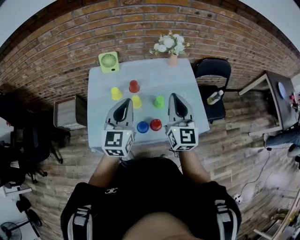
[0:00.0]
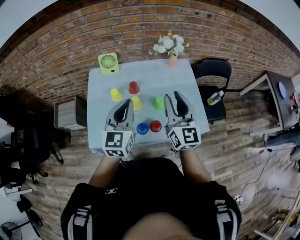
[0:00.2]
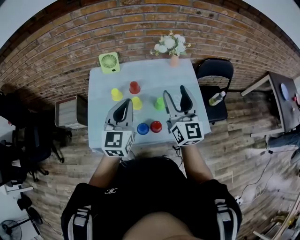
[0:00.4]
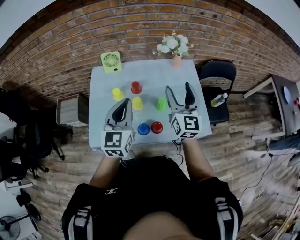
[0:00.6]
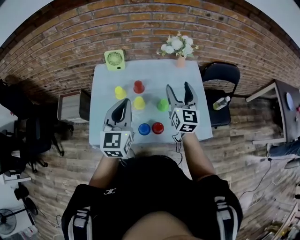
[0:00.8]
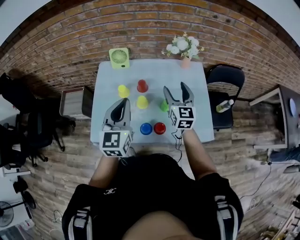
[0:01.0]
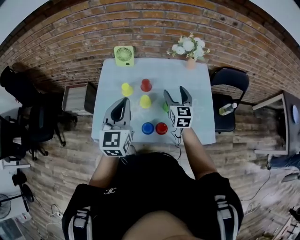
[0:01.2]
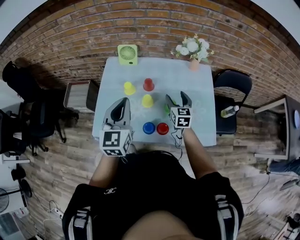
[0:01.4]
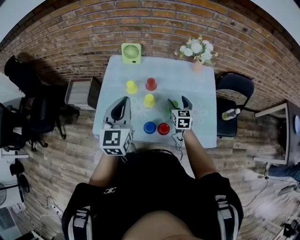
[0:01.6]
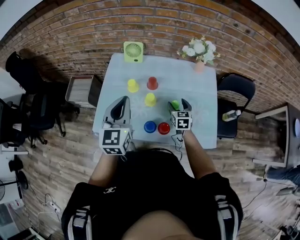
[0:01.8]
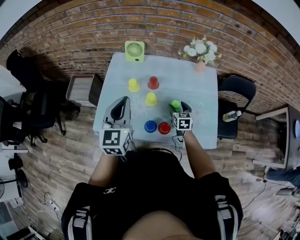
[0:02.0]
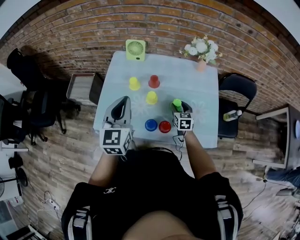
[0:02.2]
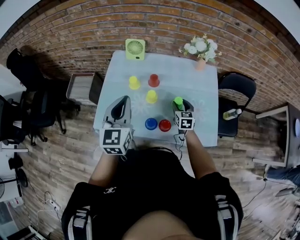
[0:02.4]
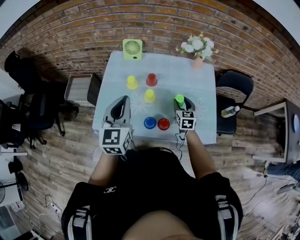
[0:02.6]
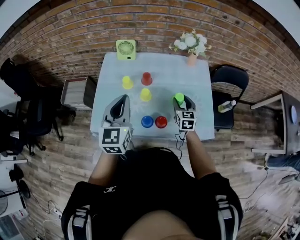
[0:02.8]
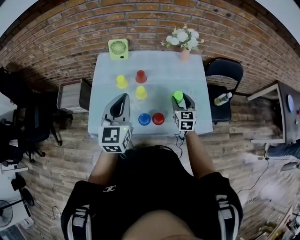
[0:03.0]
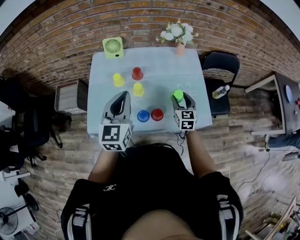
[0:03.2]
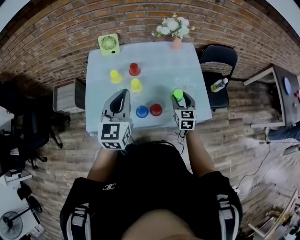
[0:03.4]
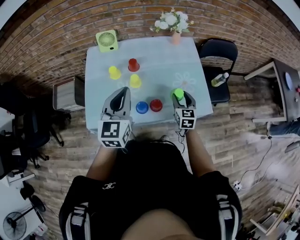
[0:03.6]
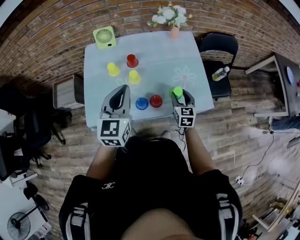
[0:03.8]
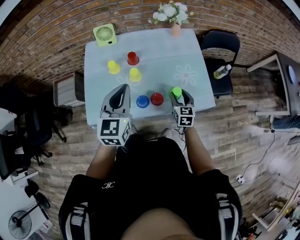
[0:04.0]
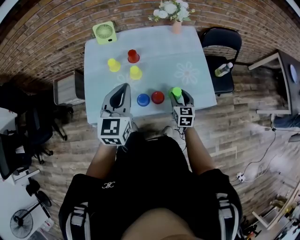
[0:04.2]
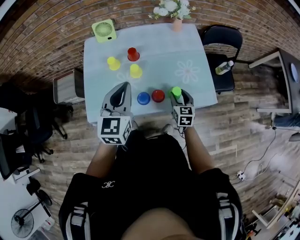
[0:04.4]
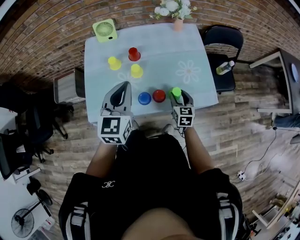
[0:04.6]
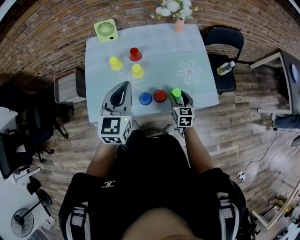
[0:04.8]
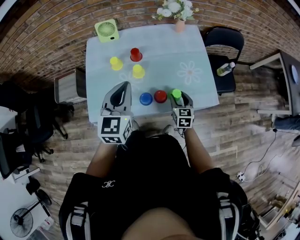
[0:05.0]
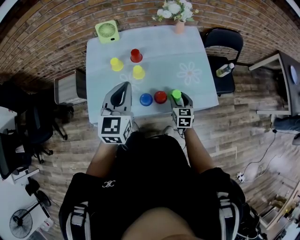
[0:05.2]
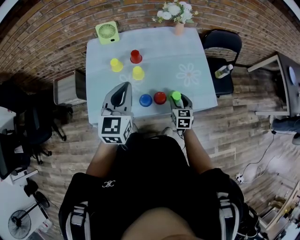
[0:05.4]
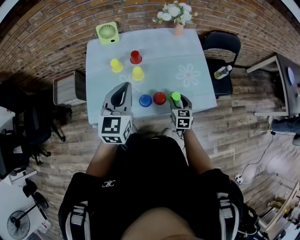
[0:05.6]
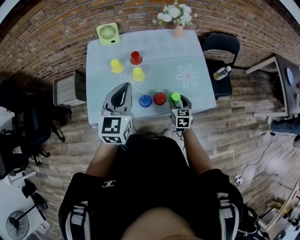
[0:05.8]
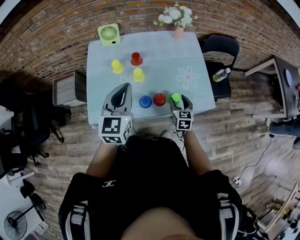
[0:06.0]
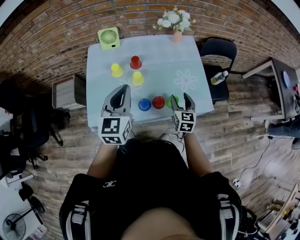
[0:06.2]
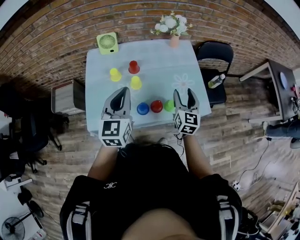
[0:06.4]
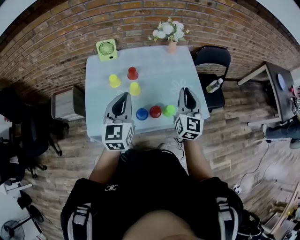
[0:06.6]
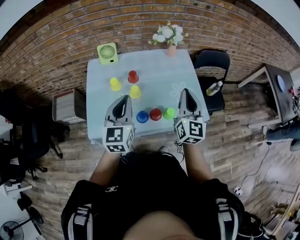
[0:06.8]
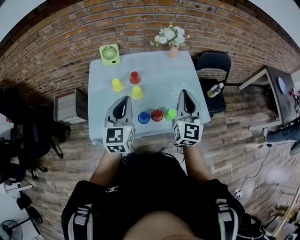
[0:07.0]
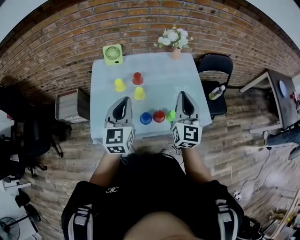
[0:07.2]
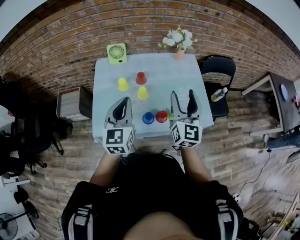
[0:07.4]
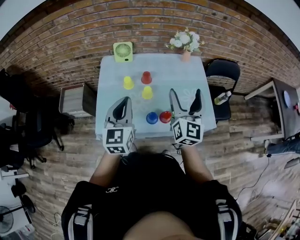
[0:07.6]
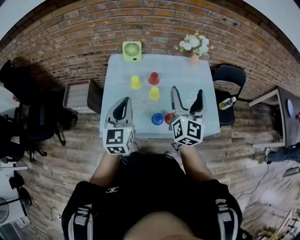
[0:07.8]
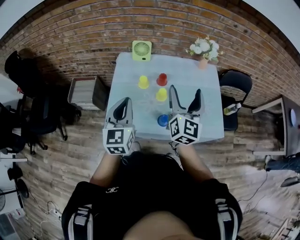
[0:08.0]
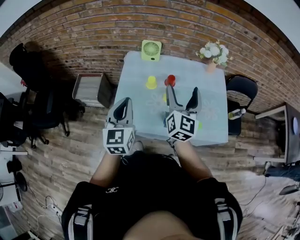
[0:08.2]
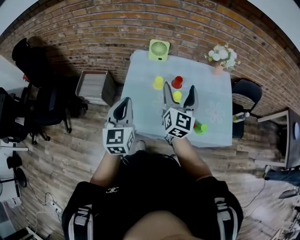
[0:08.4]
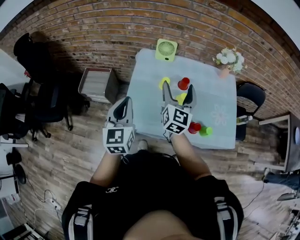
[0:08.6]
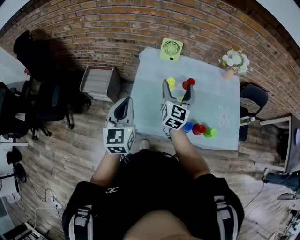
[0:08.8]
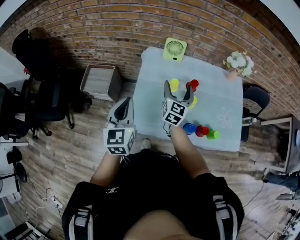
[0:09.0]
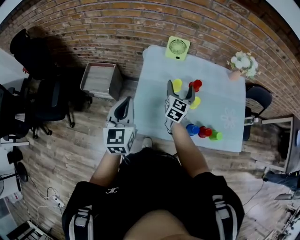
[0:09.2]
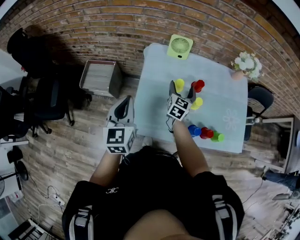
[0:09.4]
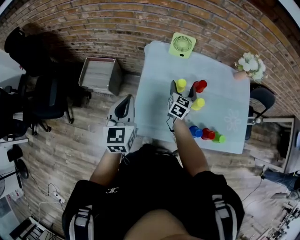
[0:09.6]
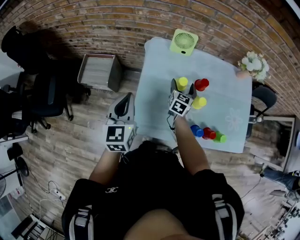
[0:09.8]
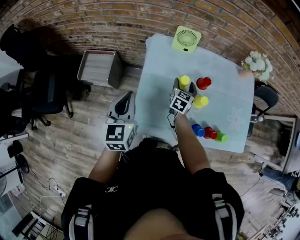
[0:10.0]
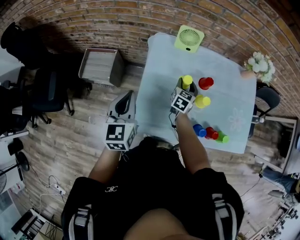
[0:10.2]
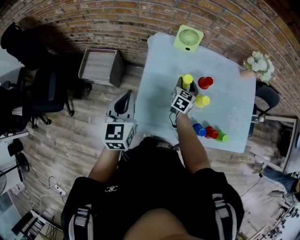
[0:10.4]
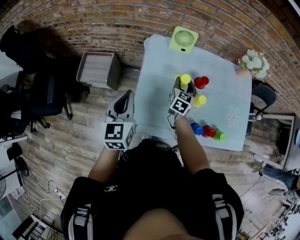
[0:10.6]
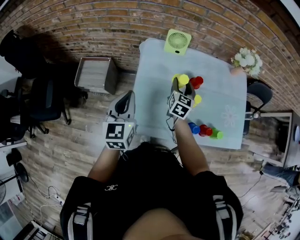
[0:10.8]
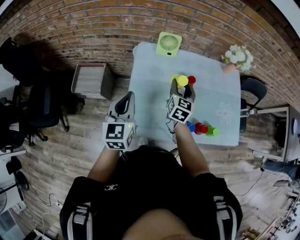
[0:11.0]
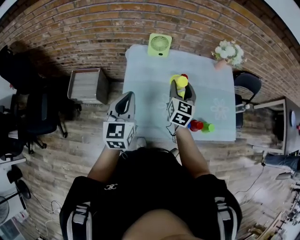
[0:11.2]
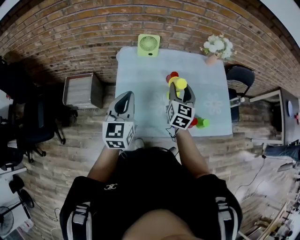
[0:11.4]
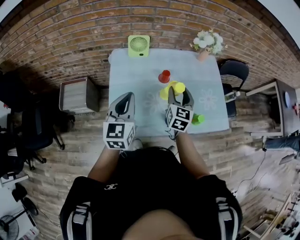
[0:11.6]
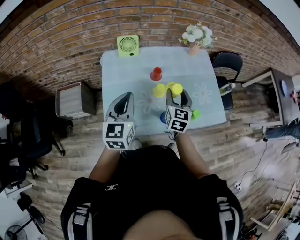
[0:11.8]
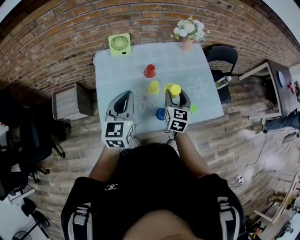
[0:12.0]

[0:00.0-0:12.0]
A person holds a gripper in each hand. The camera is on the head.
0:00.0 to 0:01.6: The right gripper moves downward and forward, about 30 cm, angles its fingers downward, by some 30 degrees, and opens its fingers, while the left gripper changes place by approximately 5 cm.
0:01.6 to 0:03.0: The right gripper moves backward, about 5 cm.
0:03.0 to 0:04.4: The right gripper is displaced backward and downward by approximately 10 cm. Meanwhile the left gripper changes place by approximately 5 cm.
0:04.4 to 0:06.0: The grippers make only small movements.
0:06.0 to 0:07.6: The left gripper changes place by about 5 cm. The right gripper goes about 30 cm upward, tilts its fingers roughly 40 degrees upward, and opens up.
0:07.6 to 0:09.0: The left gripper goes approximately 25 cm to the left, while the right gripper is displaced to the left, forward and downward by some 35 cm.
0:09.0 to 0:10.4: The left gripper goes about 10 cm forward, downward and to the left, while the right gripper travels downward and forward by some 20 cm, turns by approximately 20 degrees, and closes up.
0:10.4 to 0:12.0: The right gripper travels to the right, backward and upward by approximately 30 cm. Meanwhile the left gripper heads to the right, covering roughly 20 cm, and changes its angle by roughly 20 degrees.

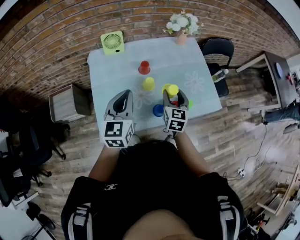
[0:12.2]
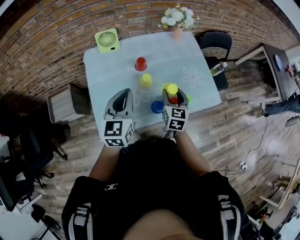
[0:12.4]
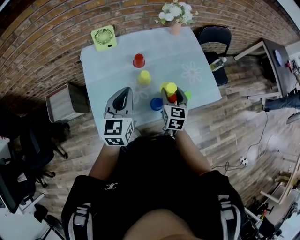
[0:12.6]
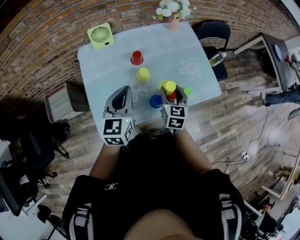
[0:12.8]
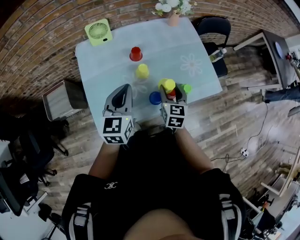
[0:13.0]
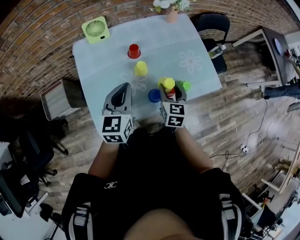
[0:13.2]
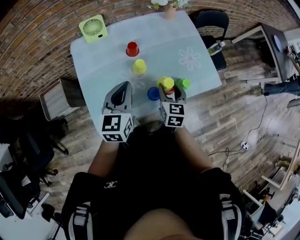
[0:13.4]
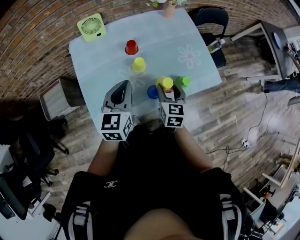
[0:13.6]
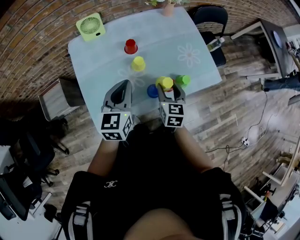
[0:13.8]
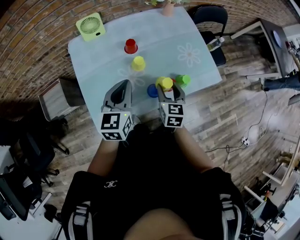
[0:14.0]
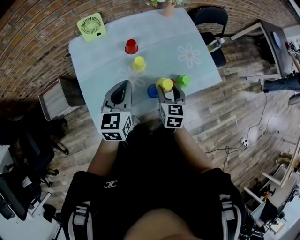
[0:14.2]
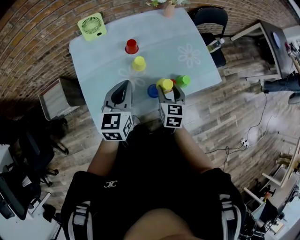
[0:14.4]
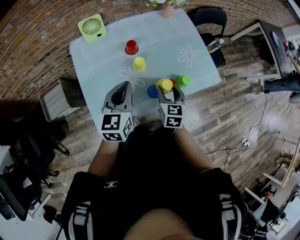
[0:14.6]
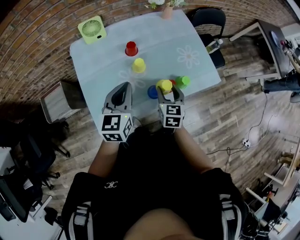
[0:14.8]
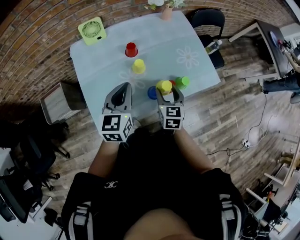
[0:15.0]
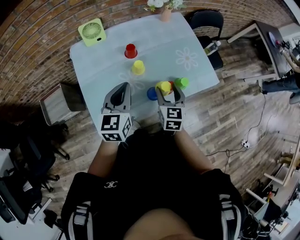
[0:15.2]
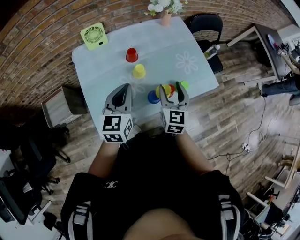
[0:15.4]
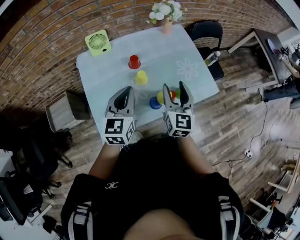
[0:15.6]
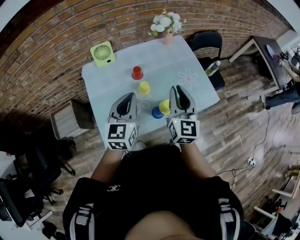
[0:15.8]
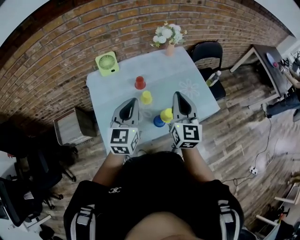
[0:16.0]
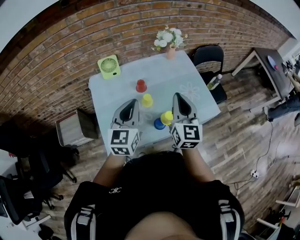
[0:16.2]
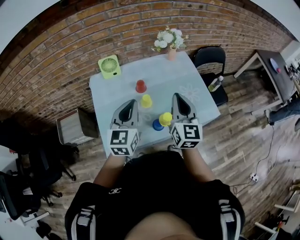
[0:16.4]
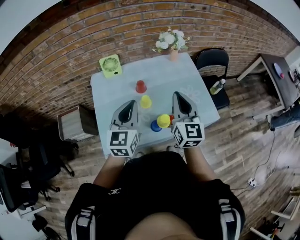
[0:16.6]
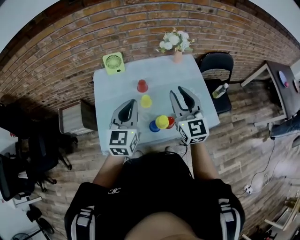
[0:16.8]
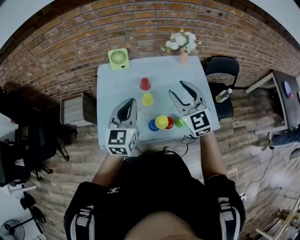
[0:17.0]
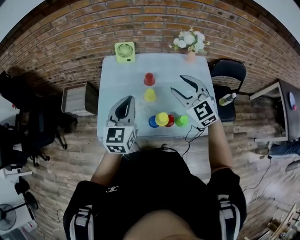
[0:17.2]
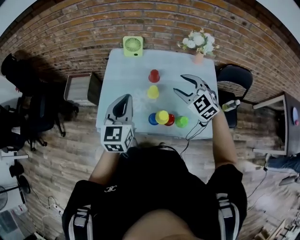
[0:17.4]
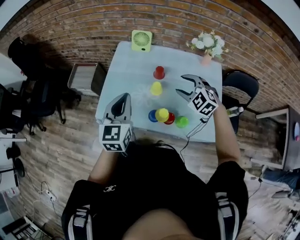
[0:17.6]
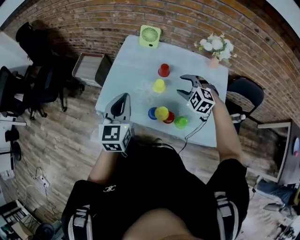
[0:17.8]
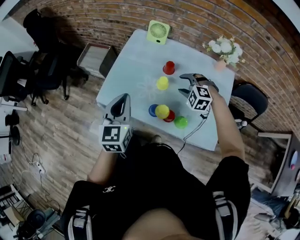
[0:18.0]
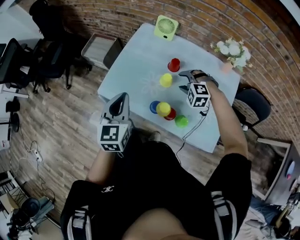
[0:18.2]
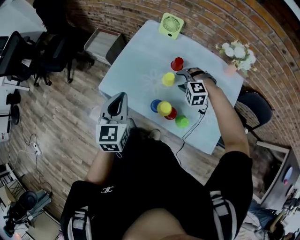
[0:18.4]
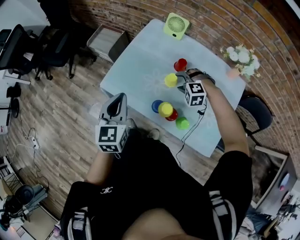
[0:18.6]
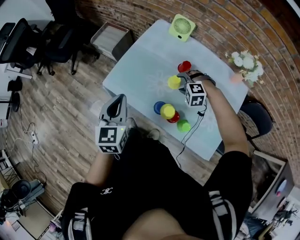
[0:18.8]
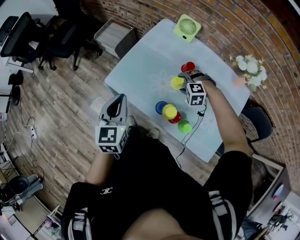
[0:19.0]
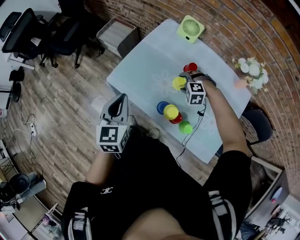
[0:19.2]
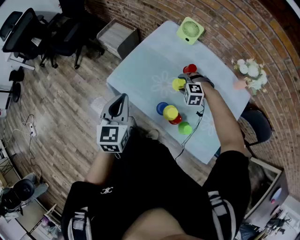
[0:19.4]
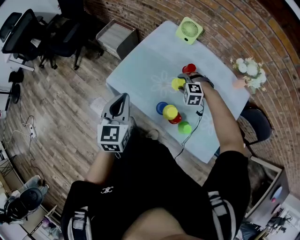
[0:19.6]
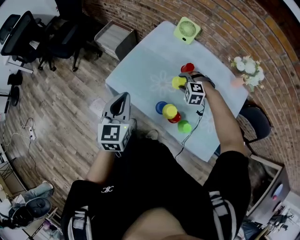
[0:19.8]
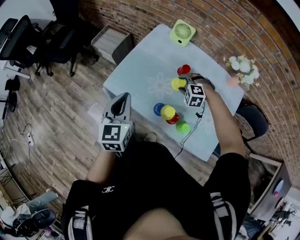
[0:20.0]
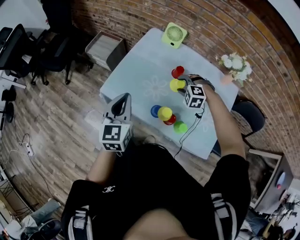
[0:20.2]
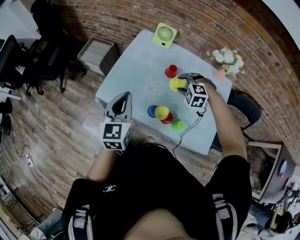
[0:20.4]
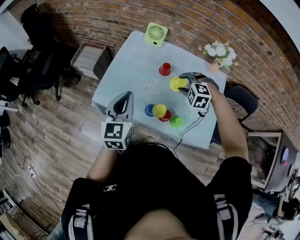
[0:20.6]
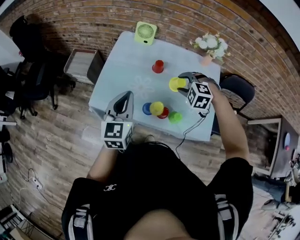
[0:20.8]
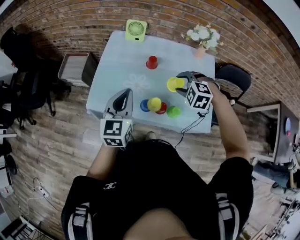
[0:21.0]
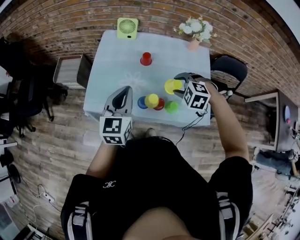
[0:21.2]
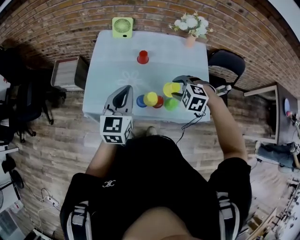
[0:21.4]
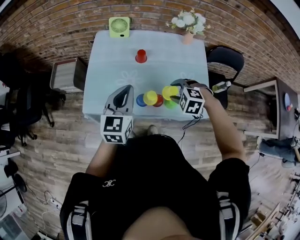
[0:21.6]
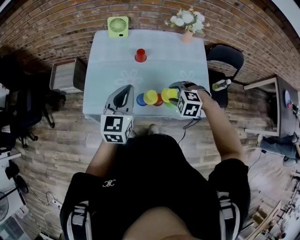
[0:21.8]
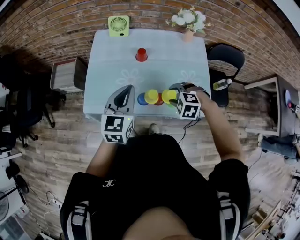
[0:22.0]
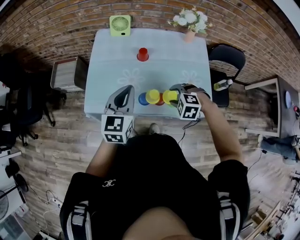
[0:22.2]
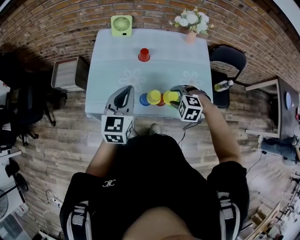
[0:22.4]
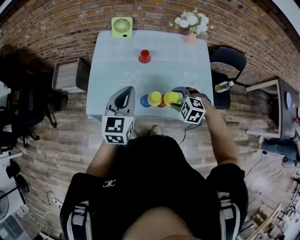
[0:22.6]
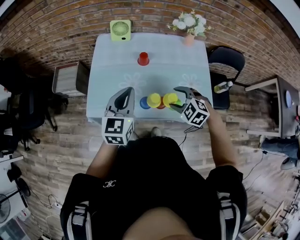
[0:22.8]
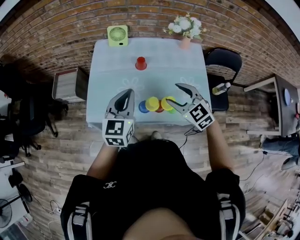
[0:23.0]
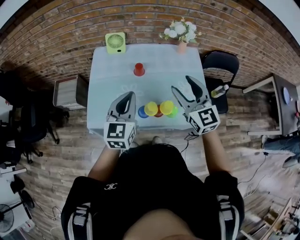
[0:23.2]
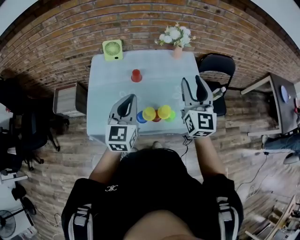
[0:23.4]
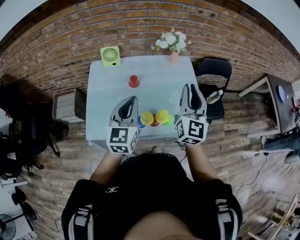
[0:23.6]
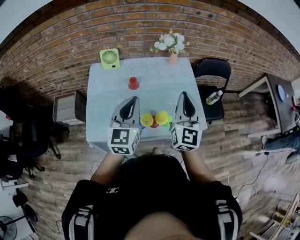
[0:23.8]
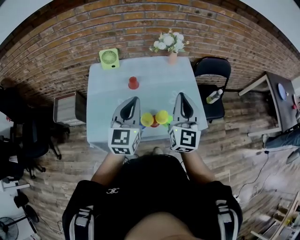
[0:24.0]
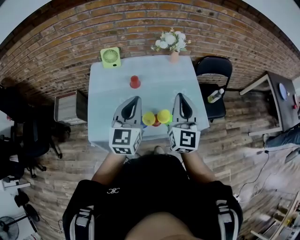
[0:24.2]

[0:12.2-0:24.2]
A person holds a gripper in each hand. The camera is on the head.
0:12.2 to 0:13.8: Both grippers travel together downward, some 5 cm.
0:13.8 to 0:15.2: The grippers move only a little.
0:15.2 to 0:16.6: The left gripper heads upward, covering some 10 cm; the right gripper goes approximately 20 cm upward, rotates approximately 30 degrees, and closes.
0:16.6 to 0:18.2: The right gripper travels downward by roughly 25 cm, tilts its fingers some 60 degrees downward, and opens; the left gripper moves approximately 10 cm, and swivels about 50 degrees.
0:18.2 to 0:19.8: The right gripper is displaced downward by roughly 5 cm.
0:19.8 to 0:21.2: The right gripper shifts by approximately 20 cm, and rotates about 30 degrees; the left gripper changes place by approximately 10 cm, and turns by approximately 30 degrees.
0:21.2 to 0:22.6: The right gripper travels downward and backward by approximately 10 cm.
0:22.6 to 0:24.2: The right gripper shifts approximately 25 cm upward, points its fingers roughly 70 degrees further upward, and closes its fingers, while the left gripper moves upward, roughly 5 cm.
